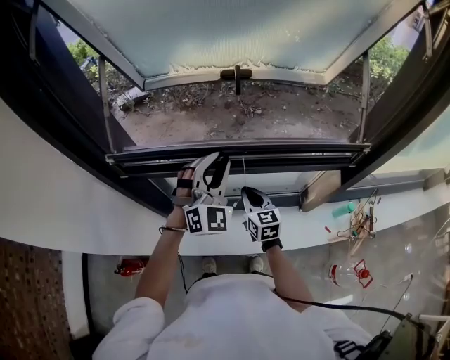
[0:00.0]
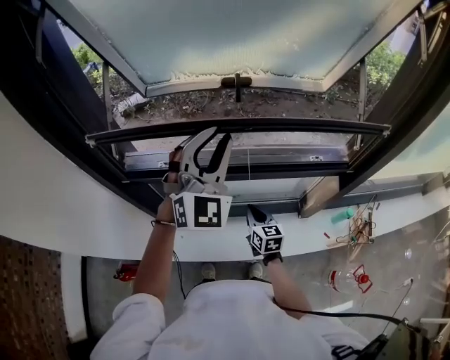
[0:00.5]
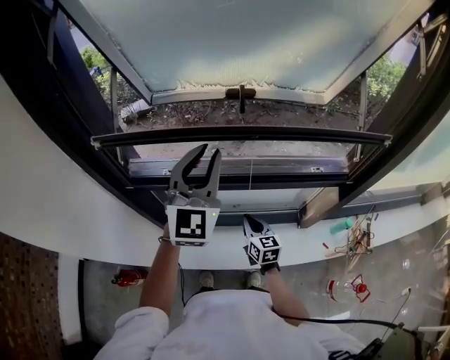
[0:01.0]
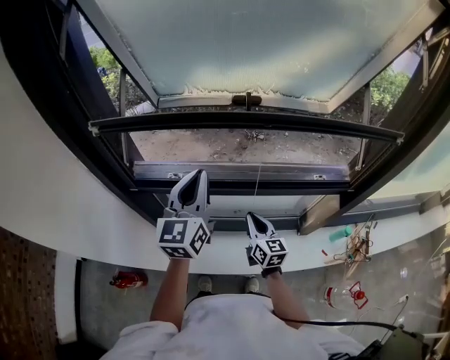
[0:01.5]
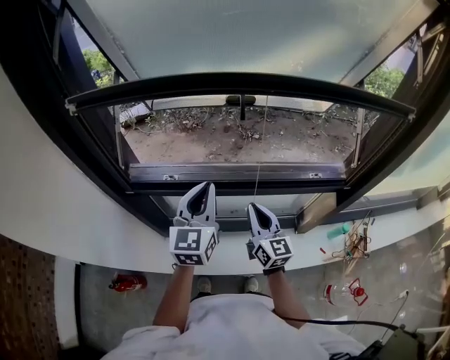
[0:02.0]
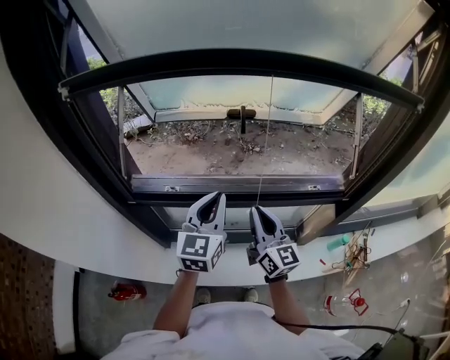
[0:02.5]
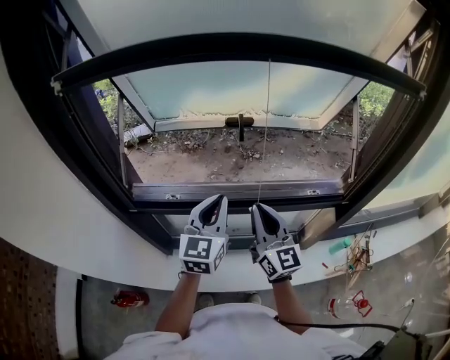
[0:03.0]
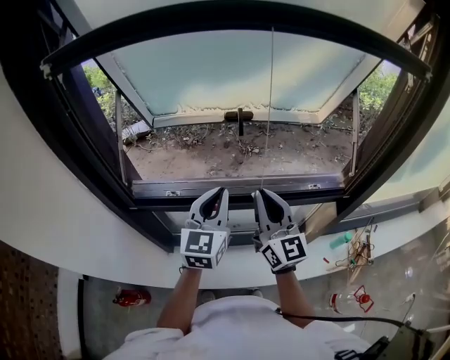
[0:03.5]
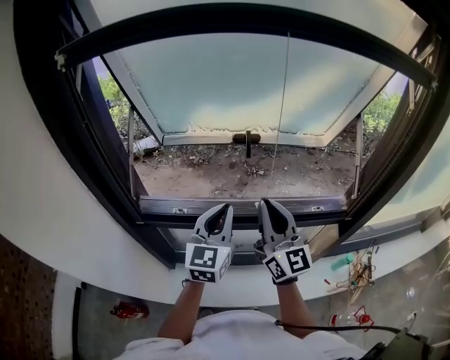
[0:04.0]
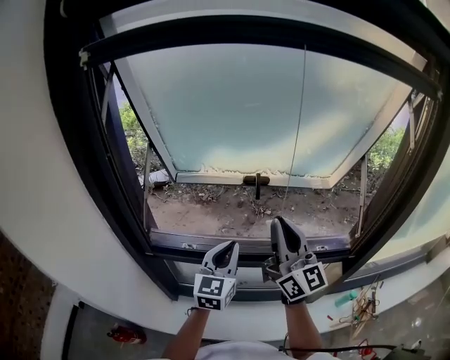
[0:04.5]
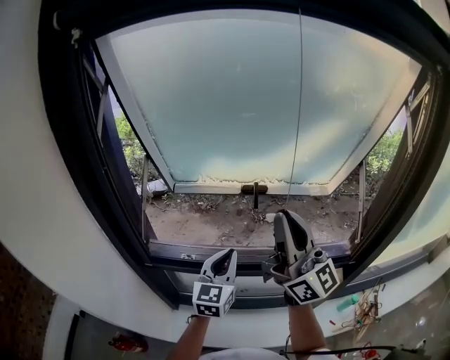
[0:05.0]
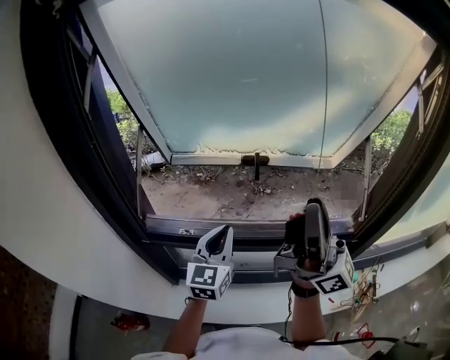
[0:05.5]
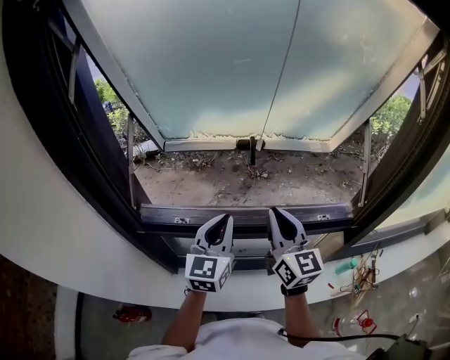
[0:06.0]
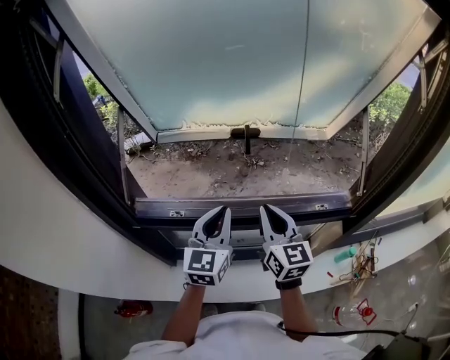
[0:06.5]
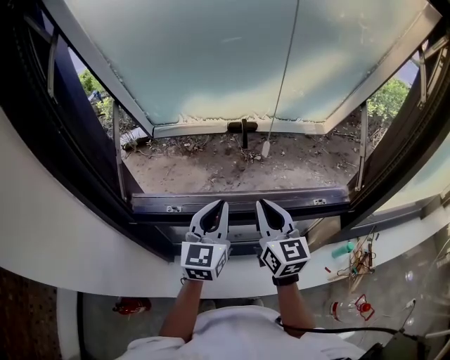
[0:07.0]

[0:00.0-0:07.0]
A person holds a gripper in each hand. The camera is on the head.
0:00.0 to 0:02.0: The left gripper is displaced to the left by about 5 cm, travels upward and back again, some 15 cm each way, and rotates around the line of its fingers by about 50 degrees, counterclockwise from behind, while the right gripper goes approximately 10 cm upward, and swivels some 20 degrees.
0:02.0 to 0:03.5: The right gripper moves upward, approximately 15 cm.
0:03.5 to 0:05.0: The right gripper heads upward, covering some 20 cm, and rotates roughly 30 degrees.
0:05.0 to 0:07.0: The right gripper heads downward, covering approximately 20 cm, and tilts its fingers approximately 40 degrees downward.

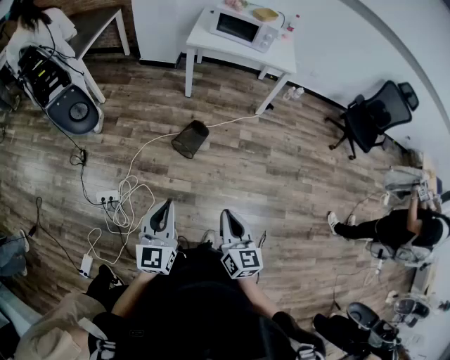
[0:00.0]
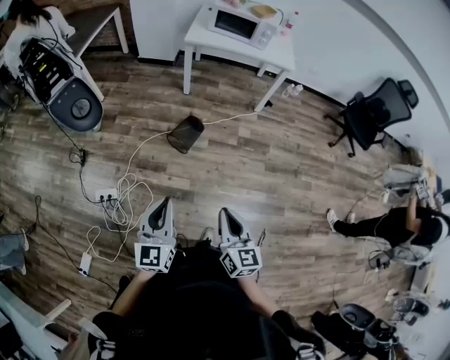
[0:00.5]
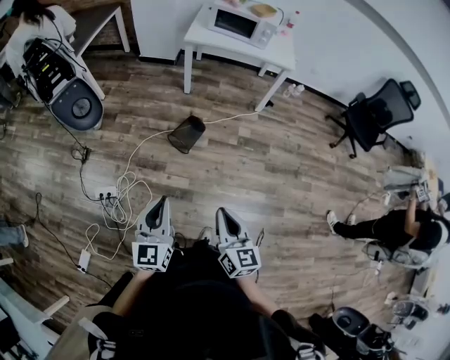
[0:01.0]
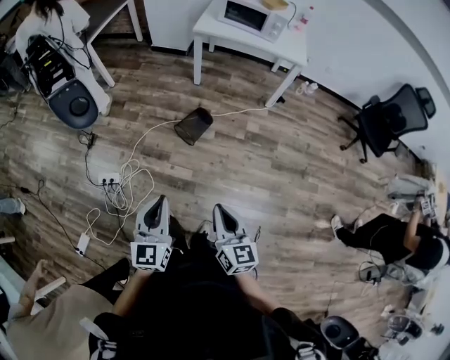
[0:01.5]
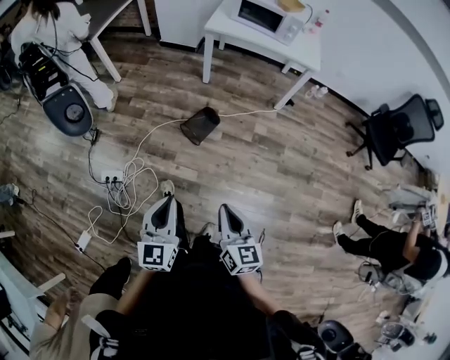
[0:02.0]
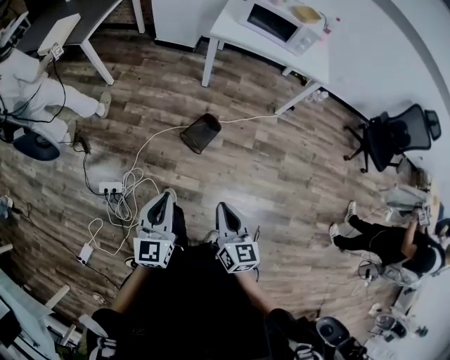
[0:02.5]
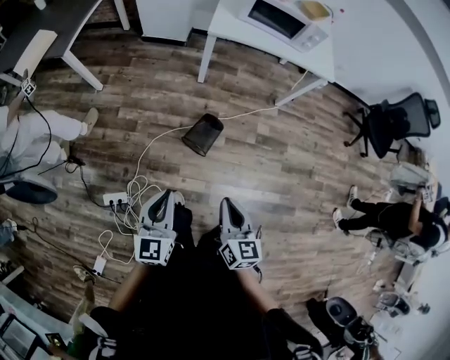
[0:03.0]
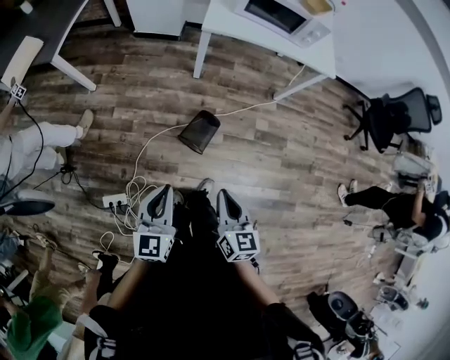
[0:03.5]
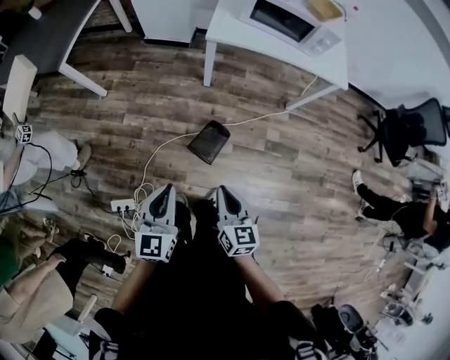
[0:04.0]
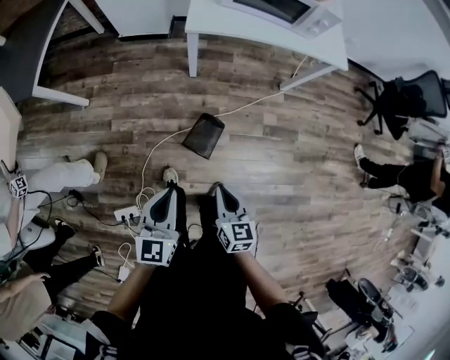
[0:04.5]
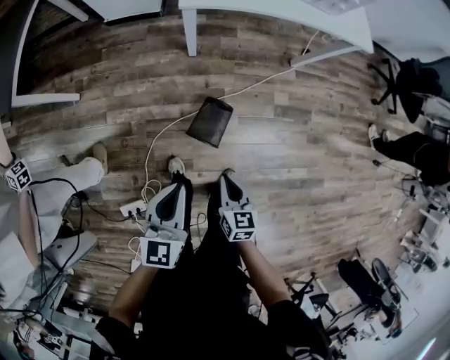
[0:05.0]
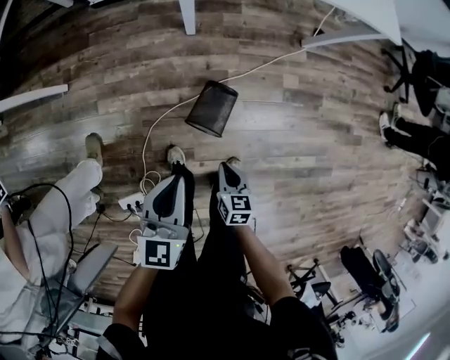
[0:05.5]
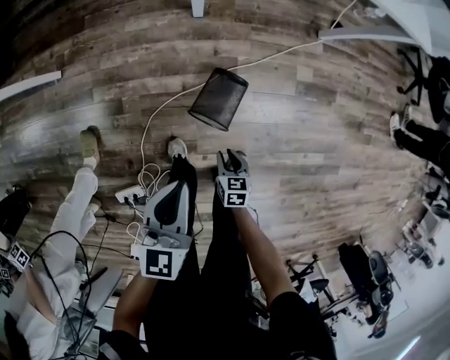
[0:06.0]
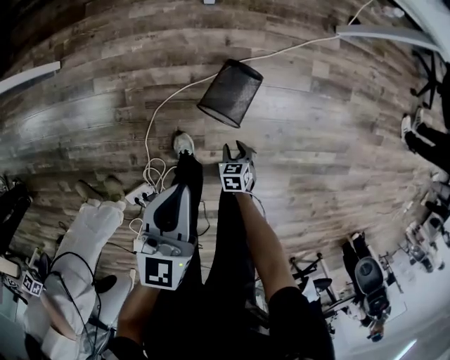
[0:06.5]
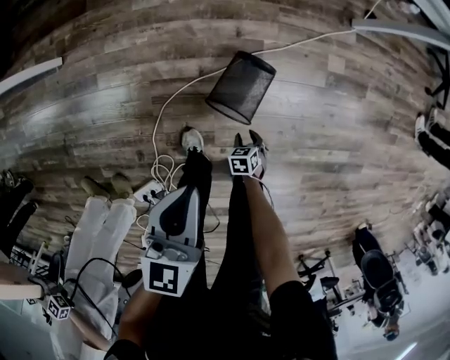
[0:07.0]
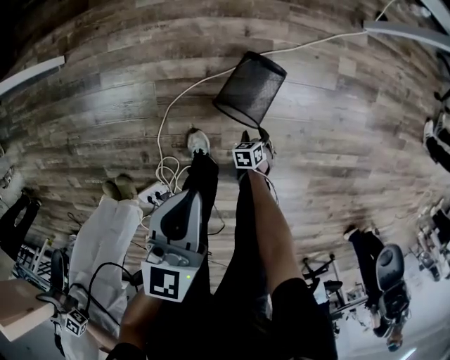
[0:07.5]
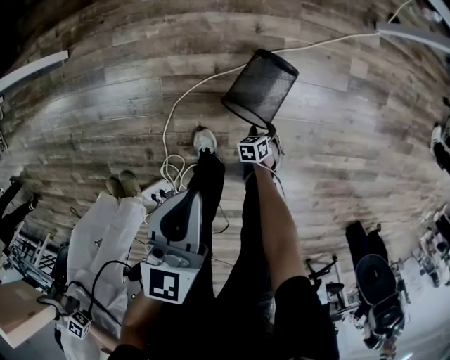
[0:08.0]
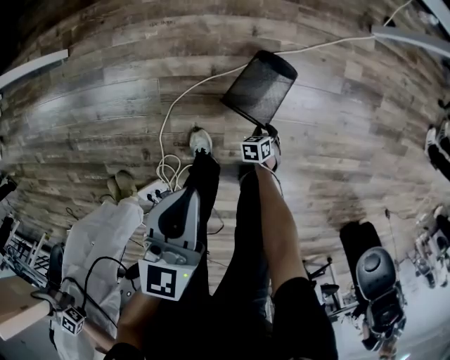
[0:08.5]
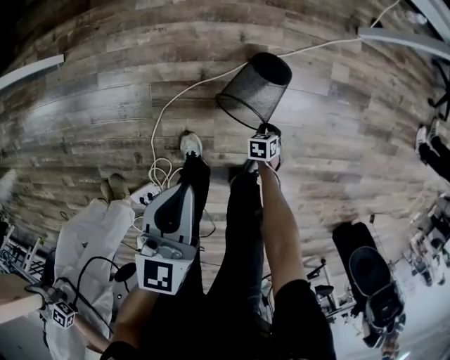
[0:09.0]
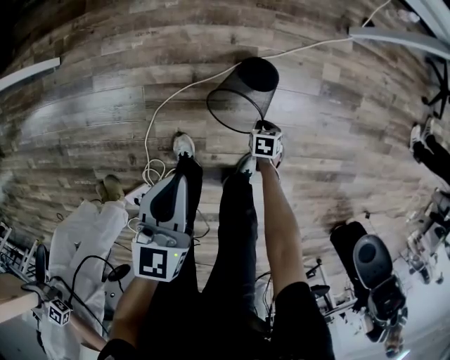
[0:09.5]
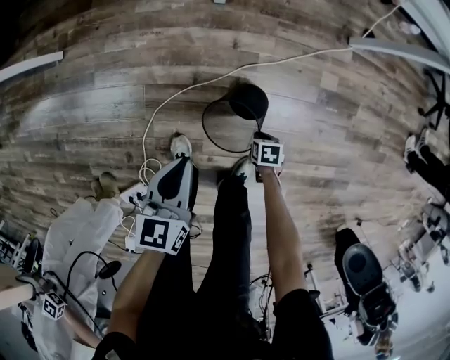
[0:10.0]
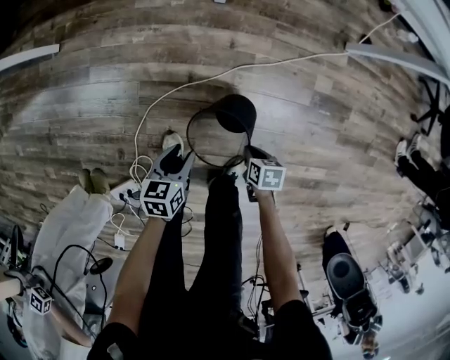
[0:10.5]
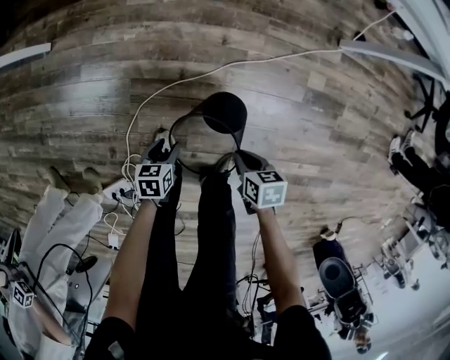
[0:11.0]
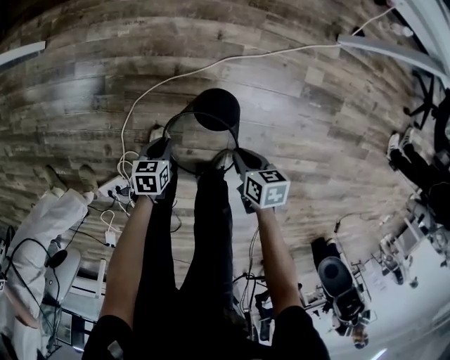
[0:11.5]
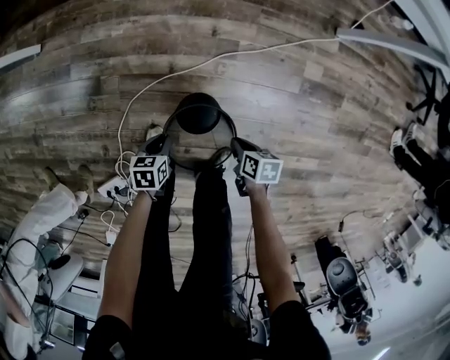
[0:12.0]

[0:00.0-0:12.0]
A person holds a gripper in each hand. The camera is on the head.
0:00.0 to 0:02.0: The right gripper moves about 5 cm, while the left gripper ends up about 5 cm from where it was.
0:02.0 to 0:04.0: Both grippers are carried forward, approximately 40 cm.
0:04.0 to 0:06.0: The right gripper is displaced downward by about 50 cm, tips its fingers downward by approximately 30 degrees, and opens, while the left gripper travels downward and forward by about 30 cm.
0:06.0 to 0:08.0: The left gripper shifts approximately 10 cm downward; the right gripper heads downward, covering some 30 cm, swivels some 30 degrees, and opens up.
0:08.0 to 0:10.0: The right gripper is displaced upward by some 10 cm, rotates approximately 20 degrees, and closes its fingers; the left gripper shifts by roughly 5 cm.
0:10.0 to 0:12.0: The right gripper moves upward, about 5 cm, and swivels roughly 20 degrees. The left gripper is displaced downward by some 25 cm, swivels roughly 30 degrees, and opens and closes again.

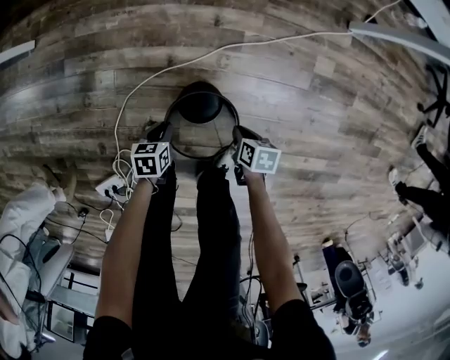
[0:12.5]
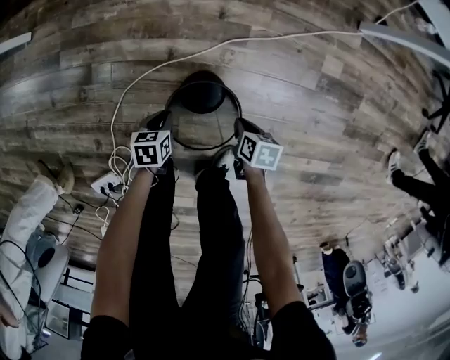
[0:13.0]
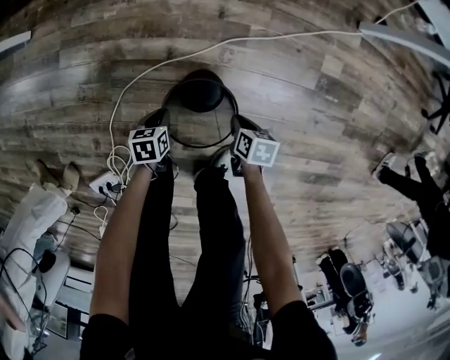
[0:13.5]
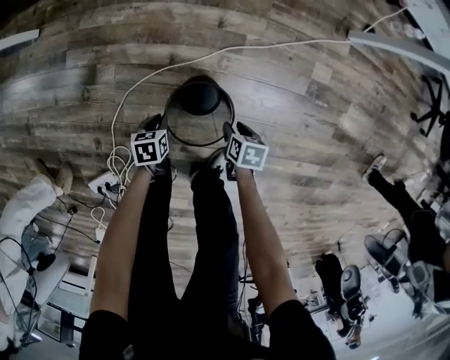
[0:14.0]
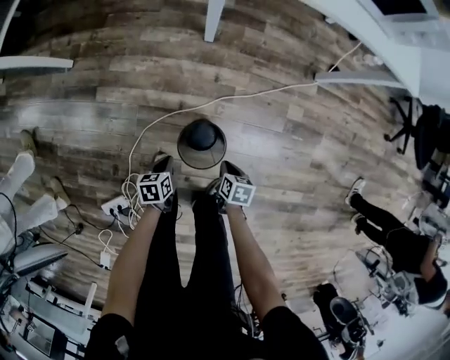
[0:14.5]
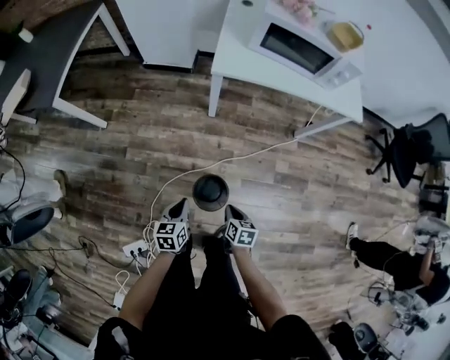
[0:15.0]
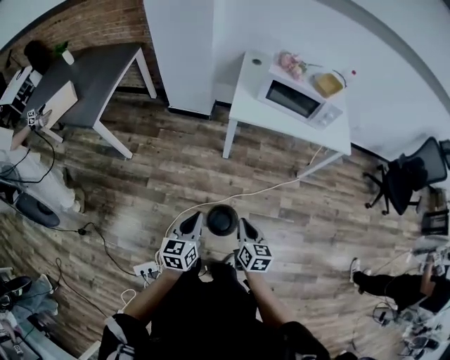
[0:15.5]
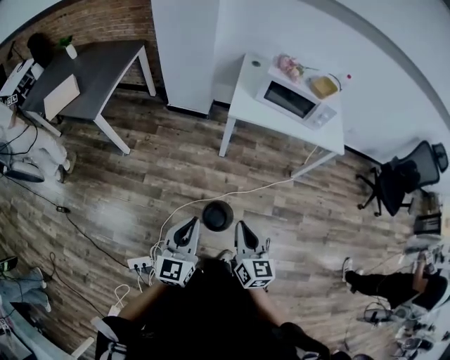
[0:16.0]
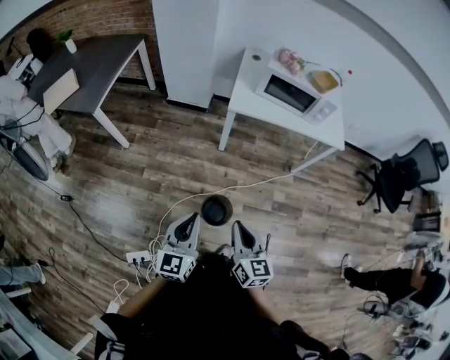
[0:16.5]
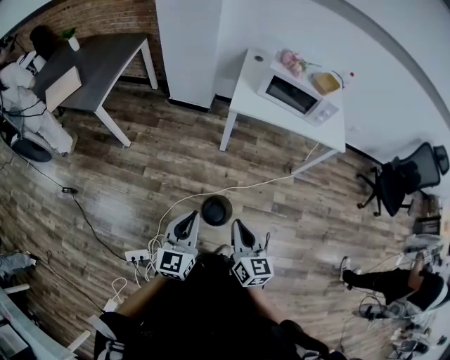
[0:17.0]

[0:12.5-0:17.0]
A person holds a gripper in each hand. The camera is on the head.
0:12.5 to 0:14.5: The two grippers go about 20 cm upward. The right gripper opens, then closes again.
0:14.5 to 0:17.0: The grippers both shift upward by about 60 cm. The left gripper angles its fingers upward, by approximately 50 degrees; the right gripper angles its fingers upward, by some 50 degrees.

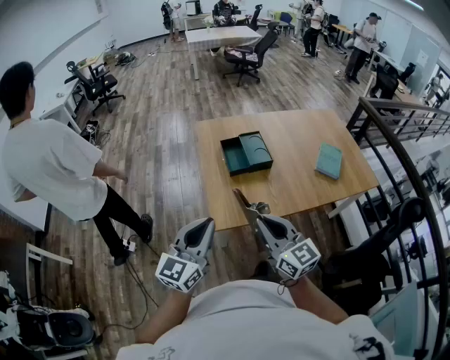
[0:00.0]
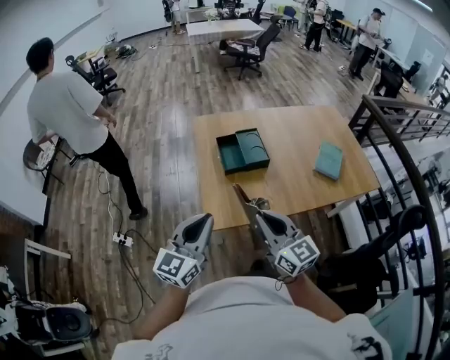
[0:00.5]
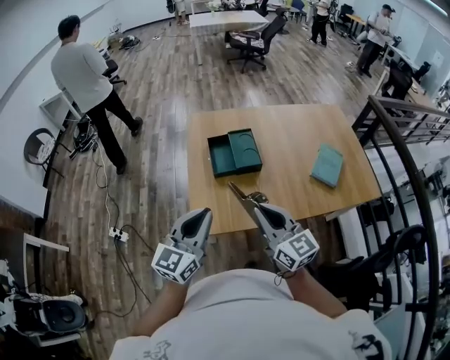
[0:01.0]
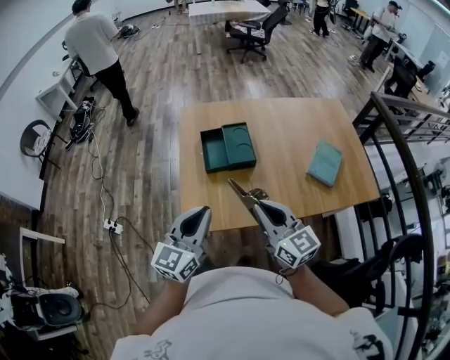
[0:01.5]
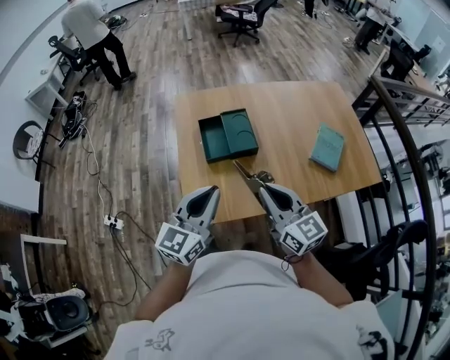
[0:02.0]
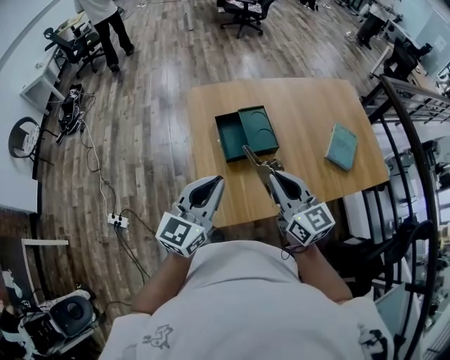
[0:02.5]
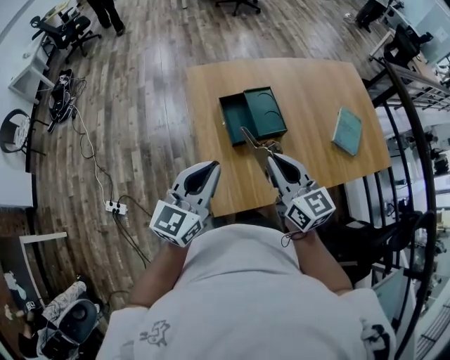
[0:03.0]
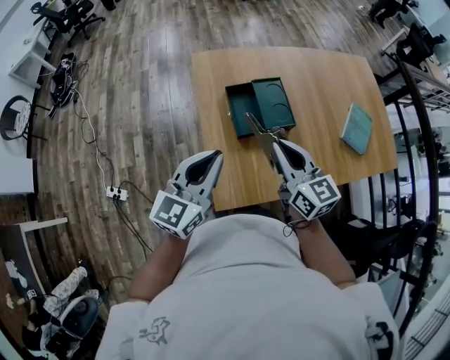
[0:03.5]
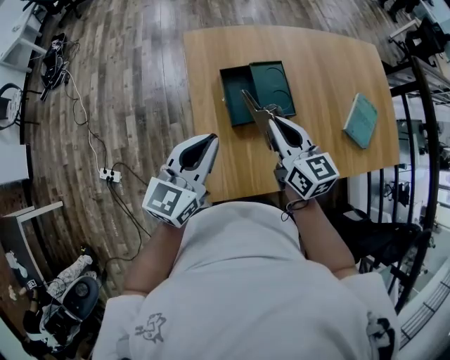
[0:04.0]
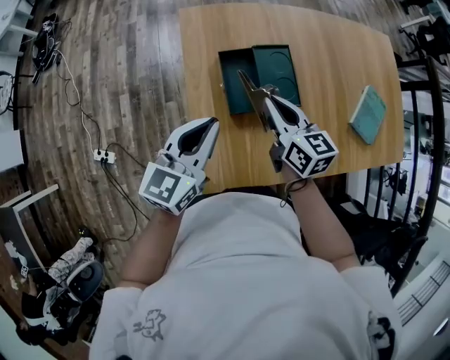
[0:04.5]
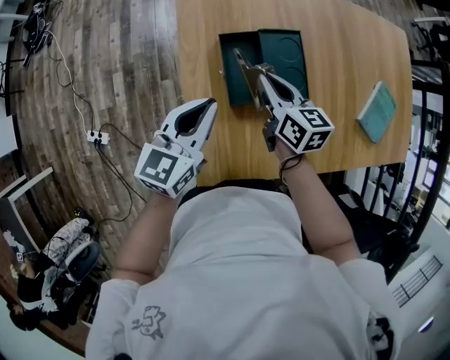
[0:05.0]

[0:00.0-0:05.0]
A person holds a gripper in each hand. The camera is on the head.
0:00.0 to 0:02.5: The grippers both shift forward by roughly 20 cm.
0:02.5 to 0:05.0: The two grippers go some 30 cm forward and downward. The right gripper swivels roughly 30 degrees.
